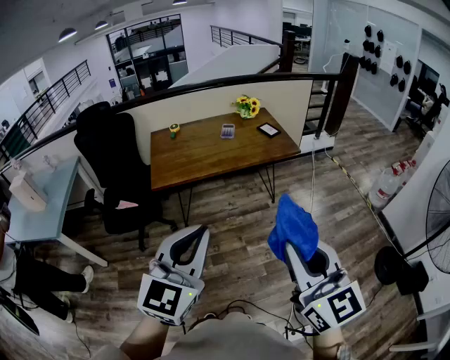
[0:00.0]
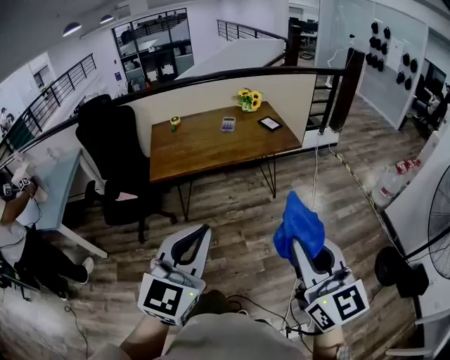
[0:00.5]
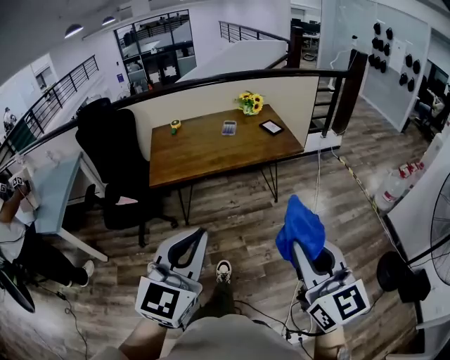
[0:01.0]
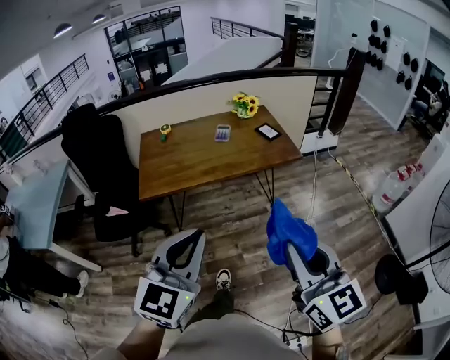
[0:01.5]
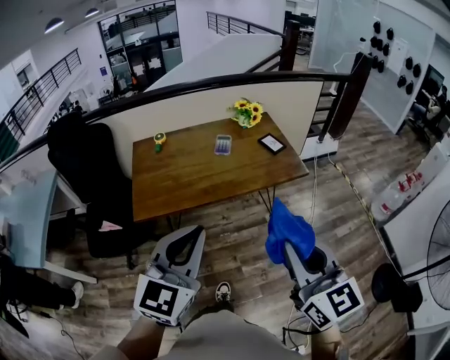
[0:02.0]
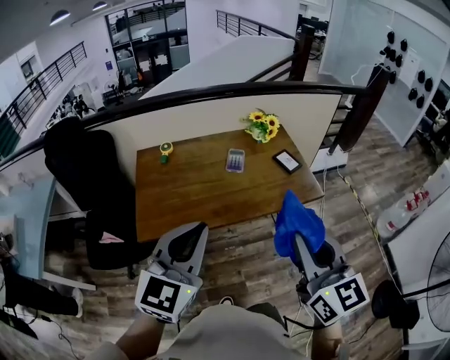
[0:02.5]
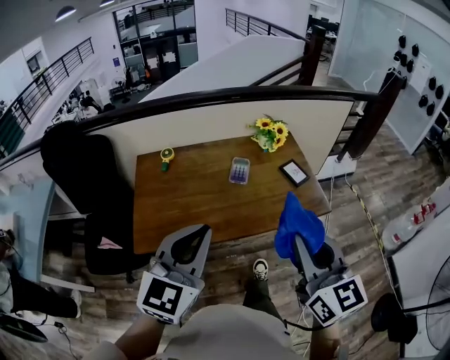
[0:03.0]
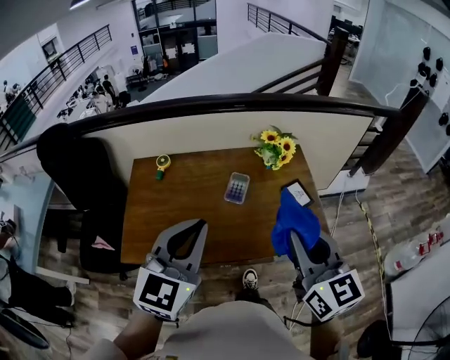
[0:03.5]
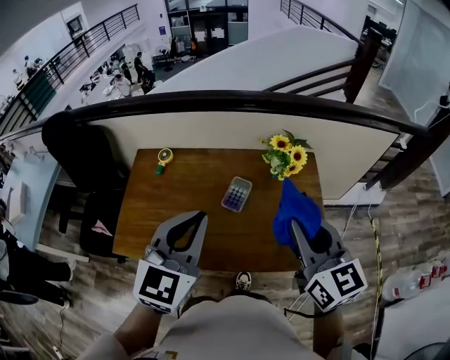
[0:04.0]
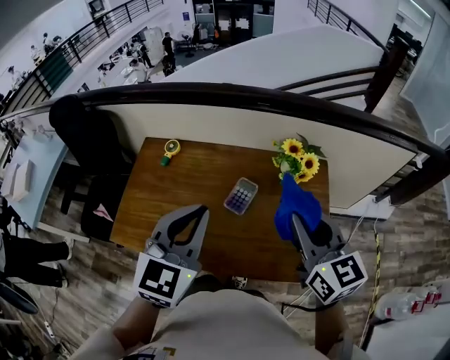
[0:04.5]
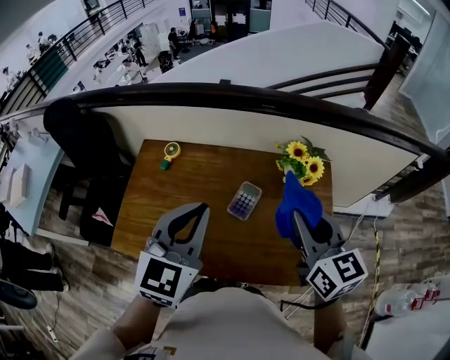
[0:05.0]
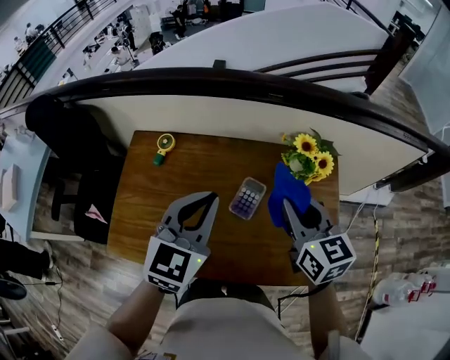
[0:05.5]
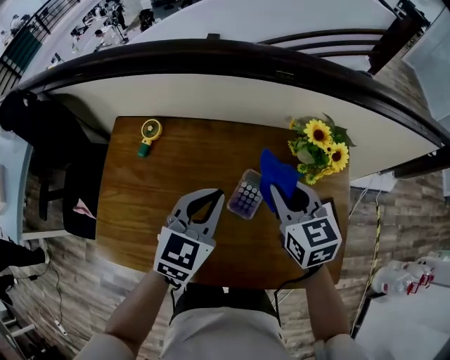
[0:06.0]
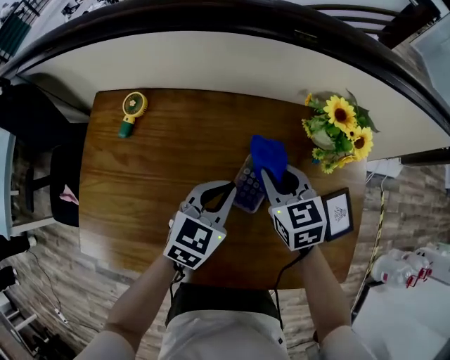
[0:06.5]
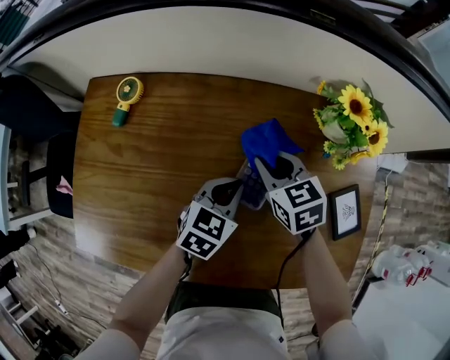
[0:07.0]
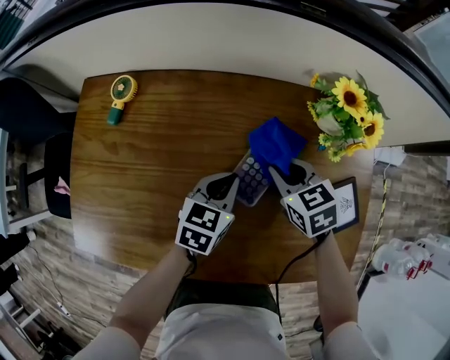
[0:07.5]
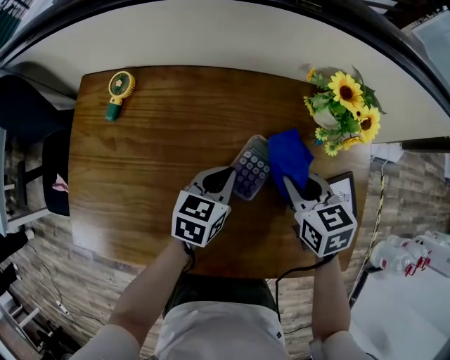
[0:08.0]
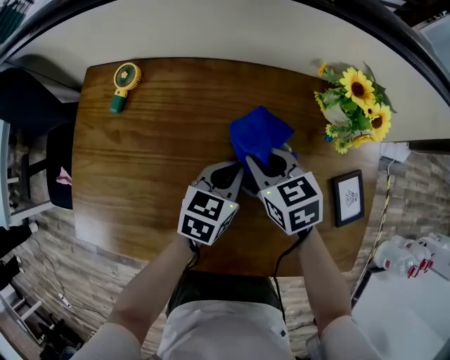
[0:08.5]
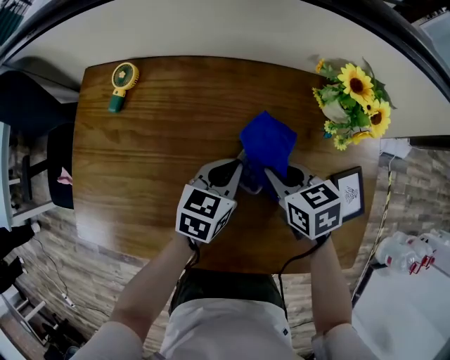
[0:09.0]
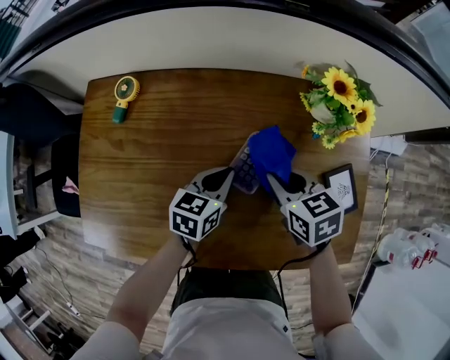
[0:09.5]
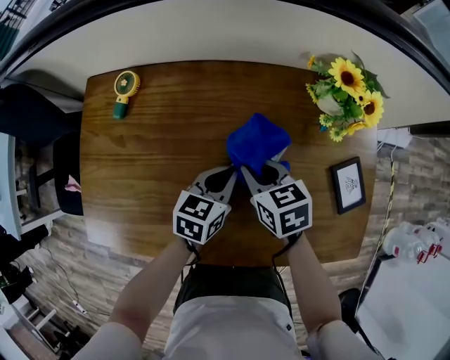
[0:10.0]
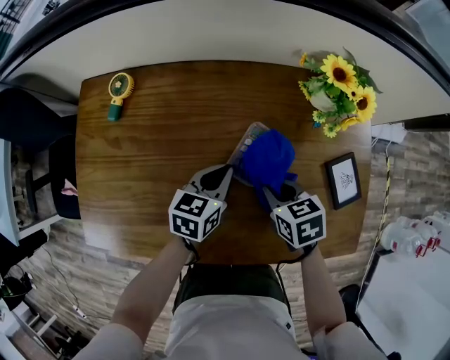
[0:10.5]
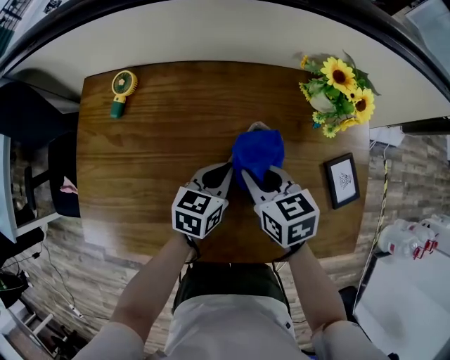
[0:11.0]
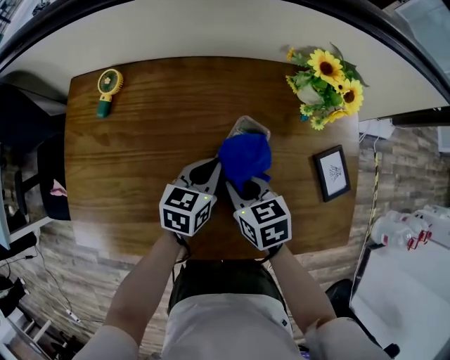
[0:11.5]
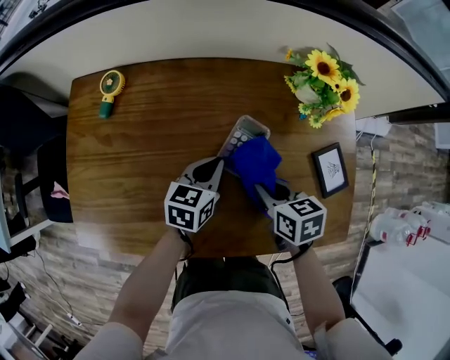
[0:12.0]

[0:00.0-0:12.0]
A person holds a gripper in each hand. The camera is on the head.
0:00.0 to 0:02.0: Both grippers move forward, approximately 30 cm.
0:02.0 to 0:04.0: The pair of grippers is taken forward, about 50 cm.
0:04.0 to 0:06.0: The right gripper travels forward and downward by roughly 35 cm, and turns by some 20 degrees, while the left gripper moves downward and forward, approximately 30 cm.
0:06.0 to 0:08.0: The grippers both shift downward by some 20 cm. The left gripper swivels roughly 30 degrees.
0:08.0 to 0:10.0: The right gripper moves left and right over some 10 cm, changing direction 2 times.
0:10.0 to 0:12.0: The right gripper goes forward and backward, about 5 cm each way, reversing 2 times.

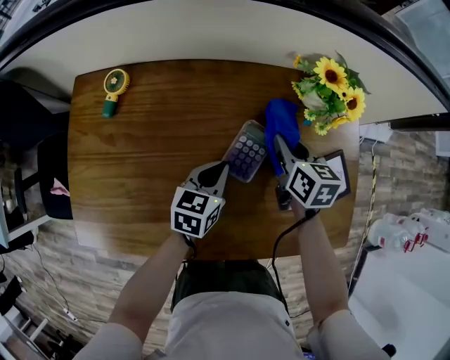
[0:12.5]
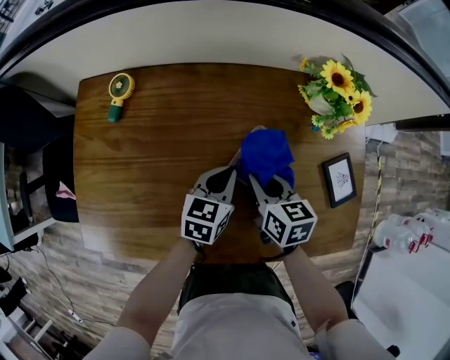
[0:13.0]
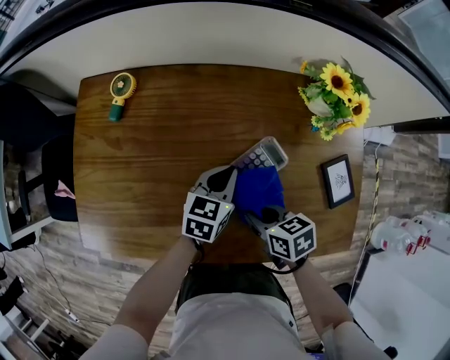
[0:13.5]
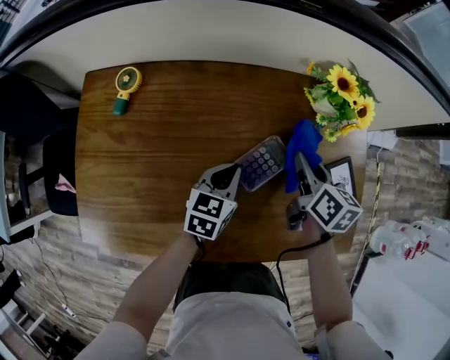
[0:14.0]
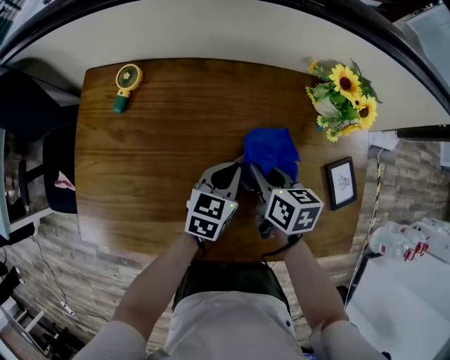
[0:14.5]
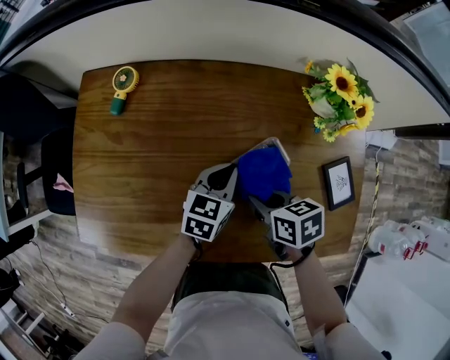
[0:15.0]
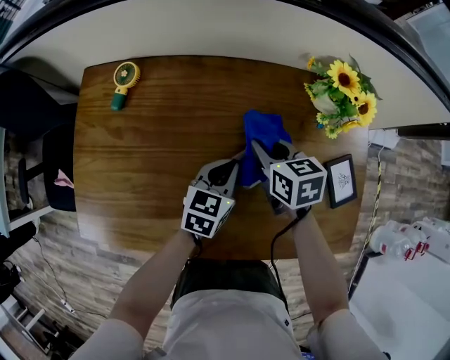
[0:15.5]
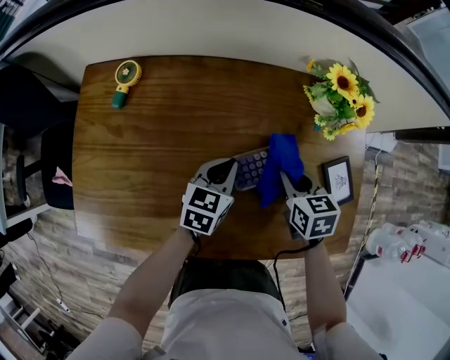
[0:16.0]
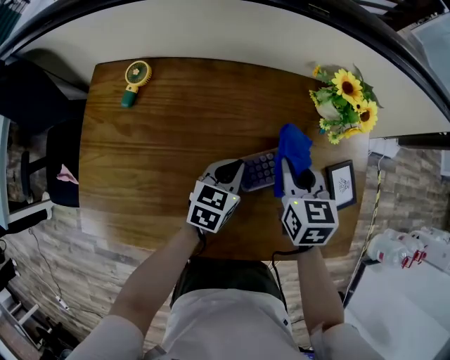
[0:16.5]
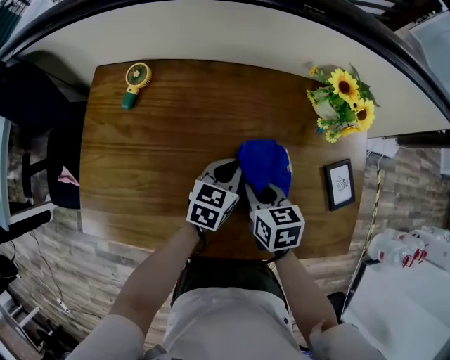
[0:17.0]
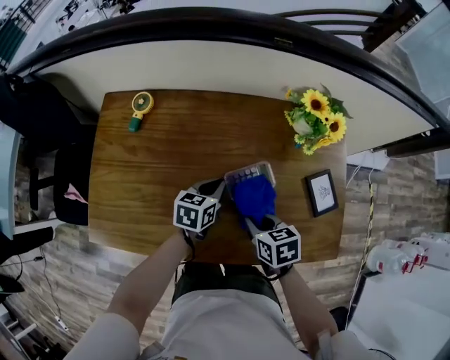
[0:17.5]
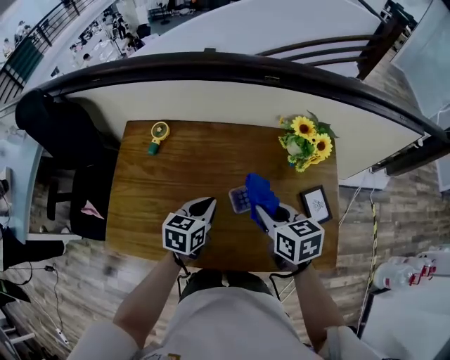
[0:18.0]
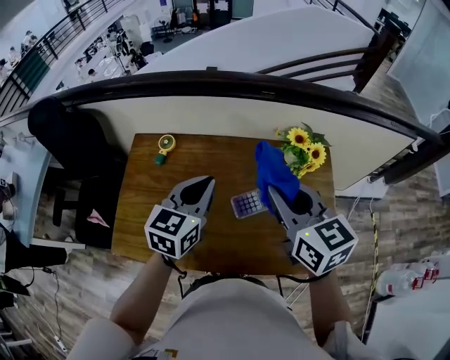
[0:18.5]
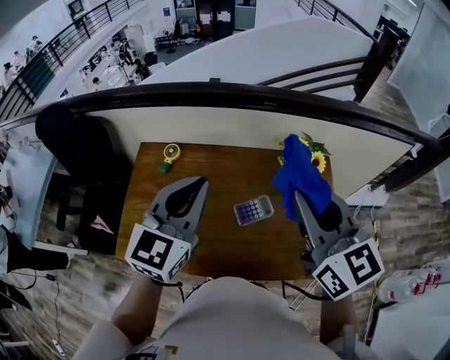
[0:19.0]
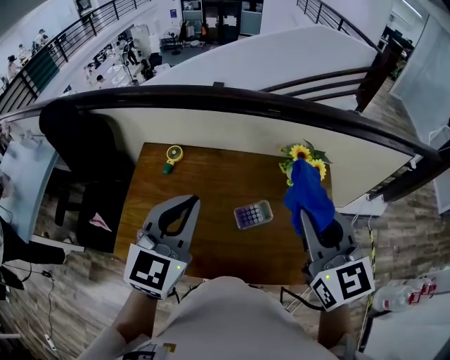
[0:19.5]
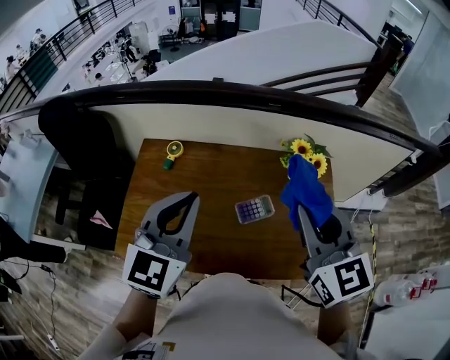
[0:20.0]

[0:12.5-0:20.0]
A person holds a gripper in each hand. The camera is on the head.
0:12.5 to 0:14.5: The right gripper swings forward and backward, about 20 cm each way, with 2 reversals.
0:14.5 to 0:16.5: The right gripper swings forward and backward, some 10 cm each way, with 2 reversals, and changes its angle by some 30 degrees.
0:16.5 to 0:18.0: The right gripper heads upward and backward, covering some 15 cm, and turns by about 20 degrees, while the left gripper travels upward and to the left by approximately 15 cm.
0:18.0 to 0:20.0: The two grippers go about 30 cm upward. The left gripper changes its angle by some 40 degrees. Meanwhile the right gripper swivels approximately 40 degrees.

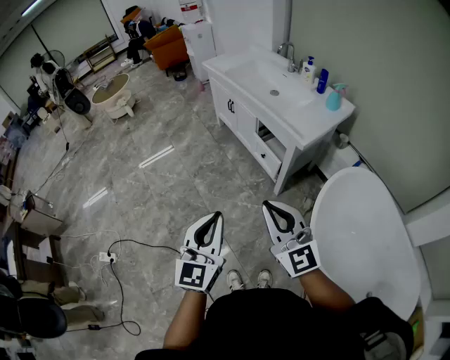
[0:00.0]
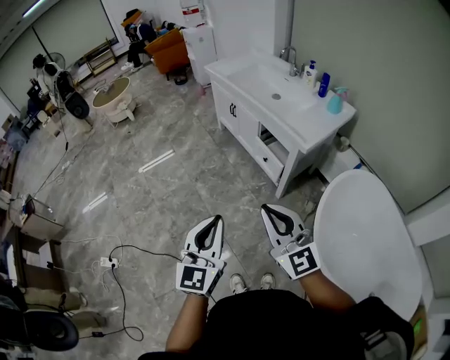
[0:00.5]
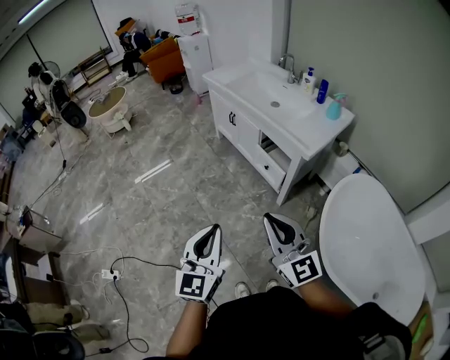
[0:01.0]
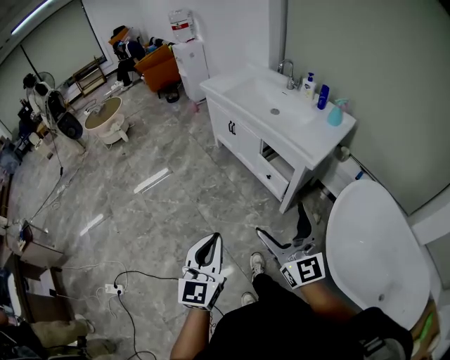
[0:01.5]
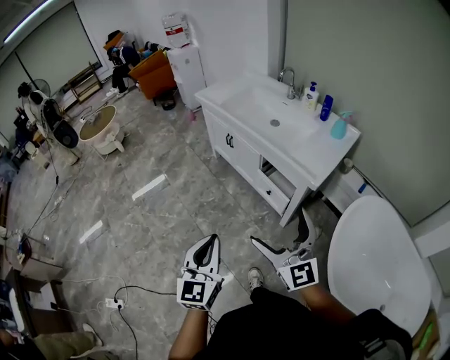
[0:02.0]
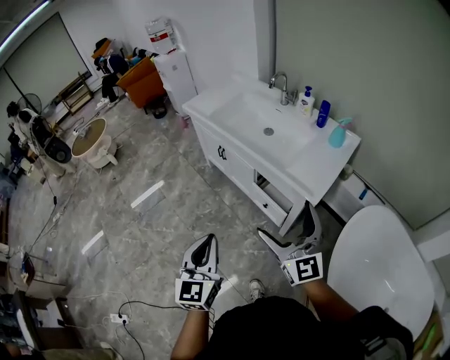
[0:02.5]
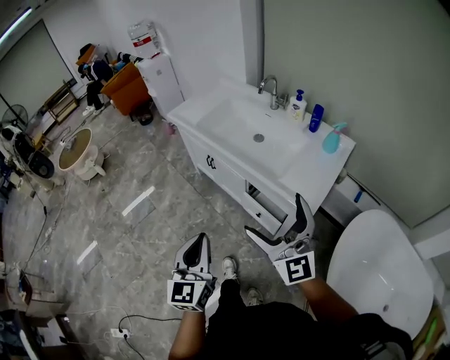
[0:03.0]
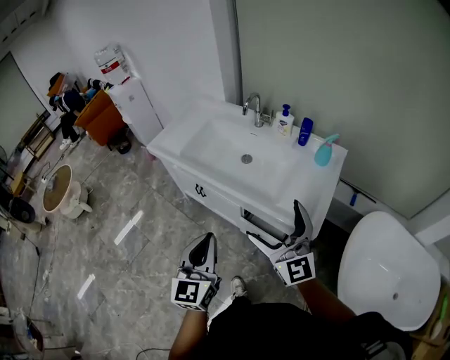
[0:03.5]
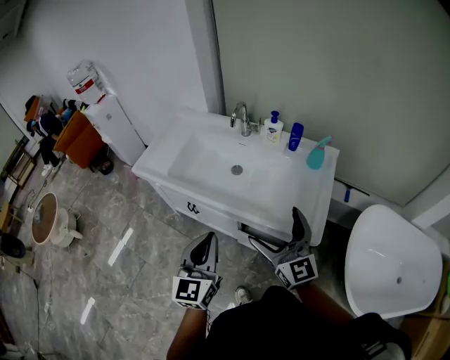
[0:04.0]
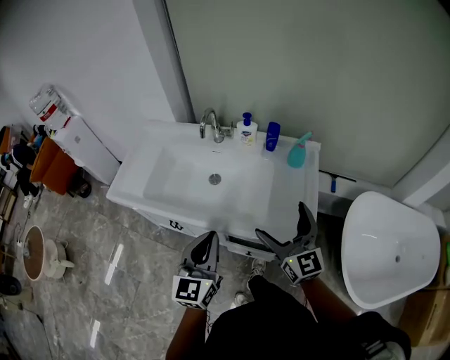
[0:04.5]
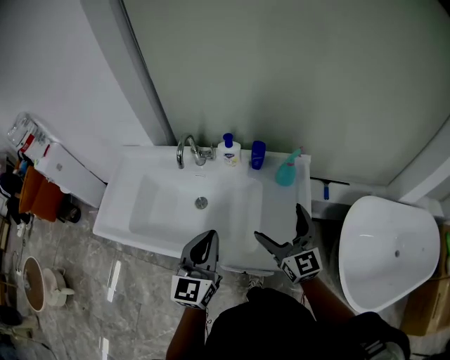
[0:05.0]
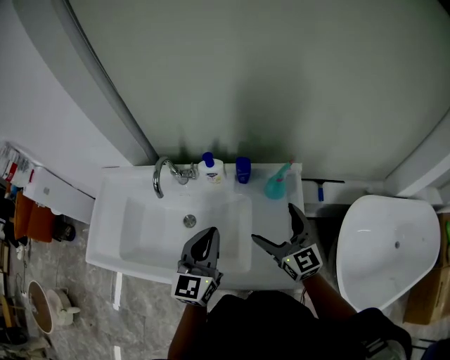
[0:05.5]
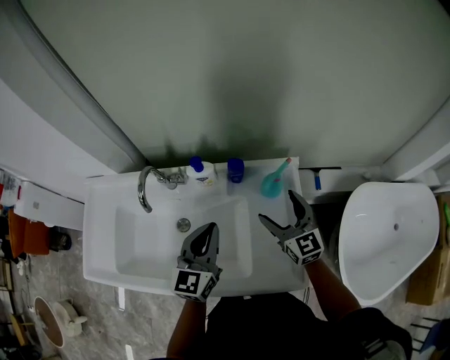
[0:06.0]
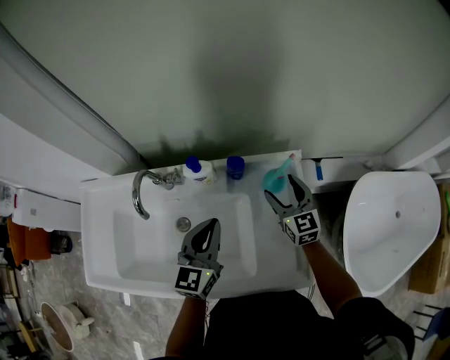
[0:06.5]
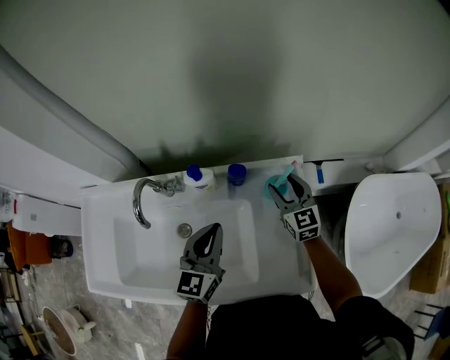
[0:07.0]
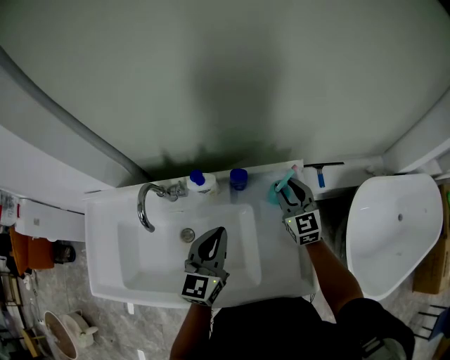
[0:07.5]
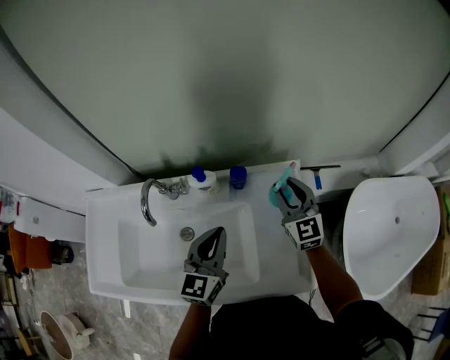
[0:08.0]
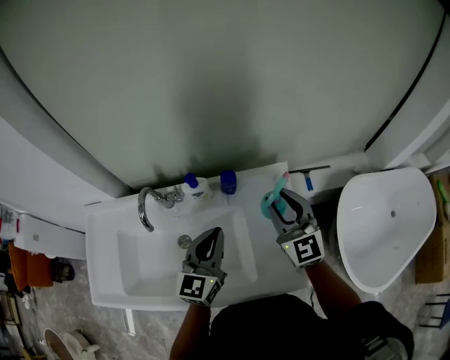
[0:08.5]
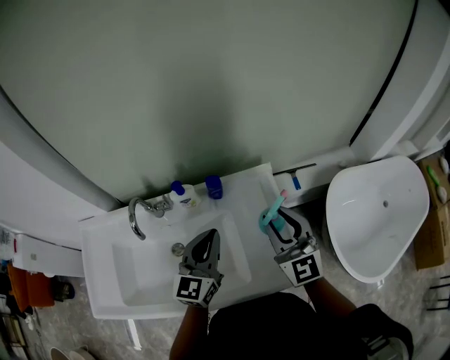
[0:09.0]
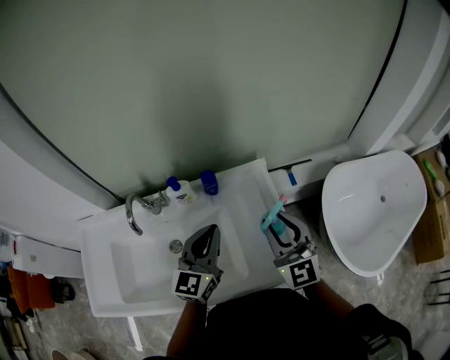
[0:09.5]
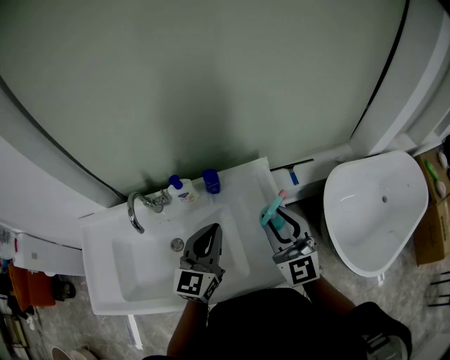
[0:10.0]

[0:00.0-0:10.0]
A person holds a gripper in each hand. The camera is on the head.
0:00.0 to 0:02.0: The right gripper goes about 15 cm forward, and opens its fingers, while the left gripper heads forward and to the left, covering some 20 cm.
0:02.0 to 0:04.0: The right gripper moves approximately 35 cm, and changes its angle by roughly 20 degrees; the left gripper moves about 40 cm, and rotates roughly 30 degrees.
0:04.0 to 0:06.0: The left gripper changes place by some 40 cm, and turns by some 30 degrees, while the right gripper moves roughly 40 cm, and swivels about 30 degrees.
0:06.0 to 0:08.0: The right gripper is displaced forward by roughly 5 cm, and closes its fingers.
0:08.0 to 0:10.0: The left gripper shifts by some 5 cm. Meanwhile the right gripper shifts about 20 cm backward and upward.
